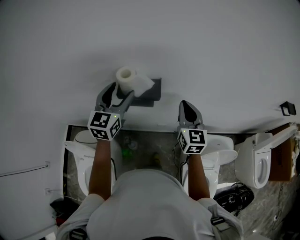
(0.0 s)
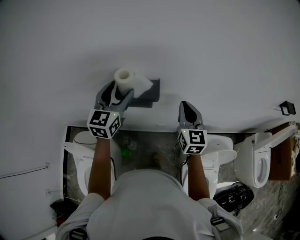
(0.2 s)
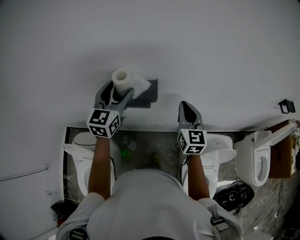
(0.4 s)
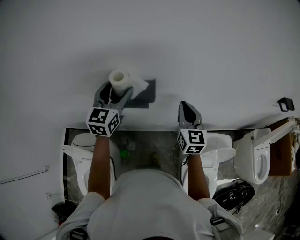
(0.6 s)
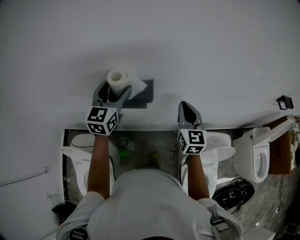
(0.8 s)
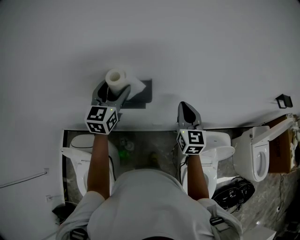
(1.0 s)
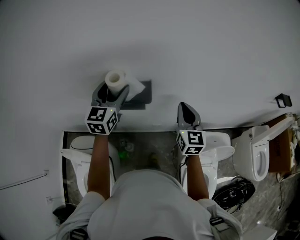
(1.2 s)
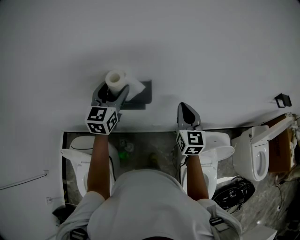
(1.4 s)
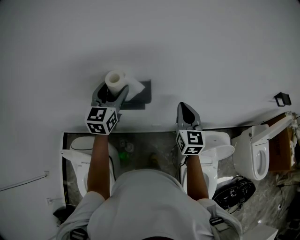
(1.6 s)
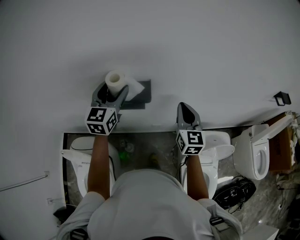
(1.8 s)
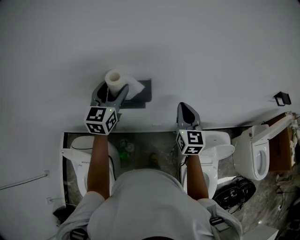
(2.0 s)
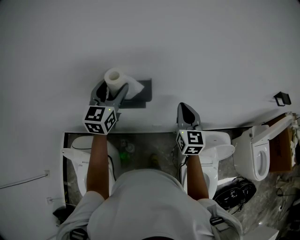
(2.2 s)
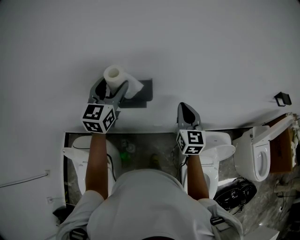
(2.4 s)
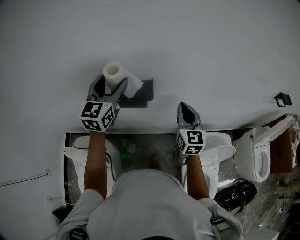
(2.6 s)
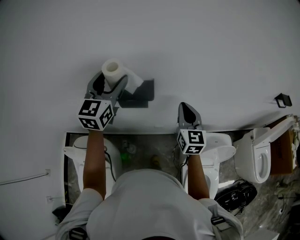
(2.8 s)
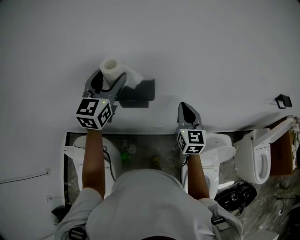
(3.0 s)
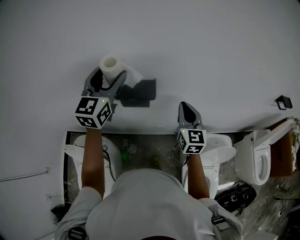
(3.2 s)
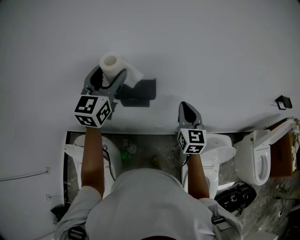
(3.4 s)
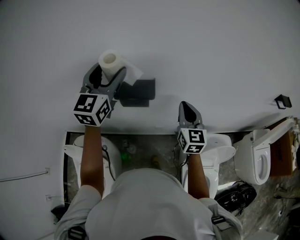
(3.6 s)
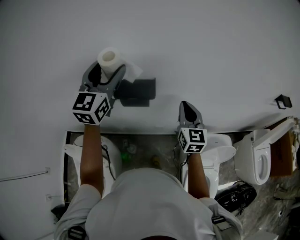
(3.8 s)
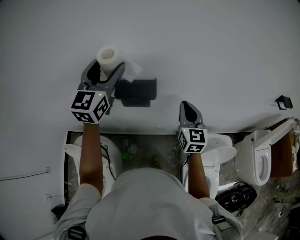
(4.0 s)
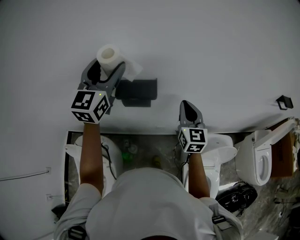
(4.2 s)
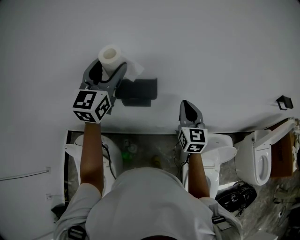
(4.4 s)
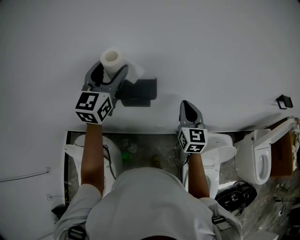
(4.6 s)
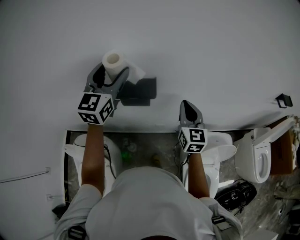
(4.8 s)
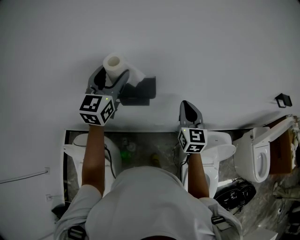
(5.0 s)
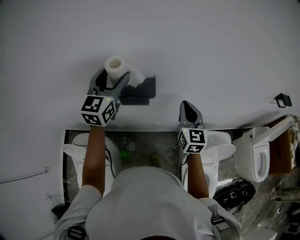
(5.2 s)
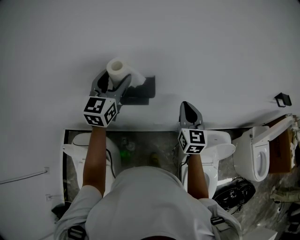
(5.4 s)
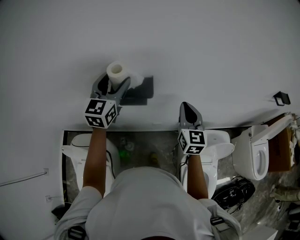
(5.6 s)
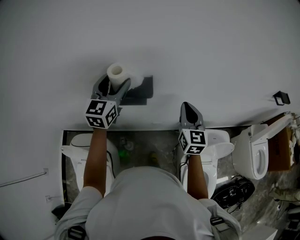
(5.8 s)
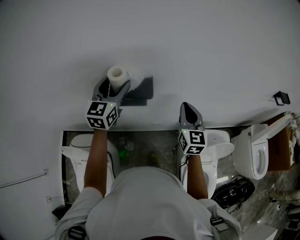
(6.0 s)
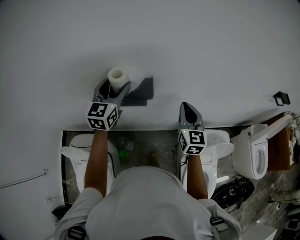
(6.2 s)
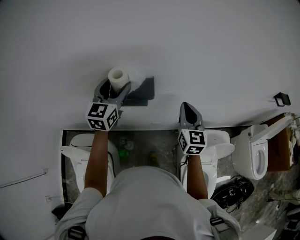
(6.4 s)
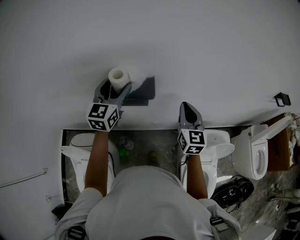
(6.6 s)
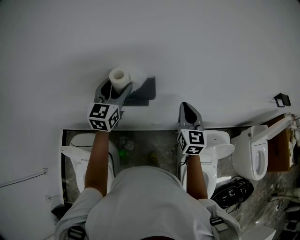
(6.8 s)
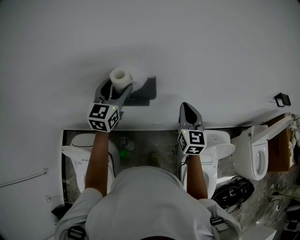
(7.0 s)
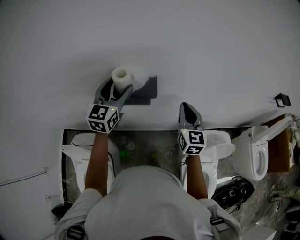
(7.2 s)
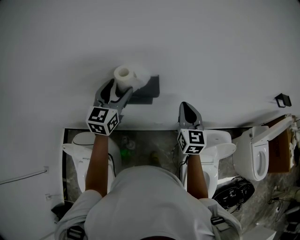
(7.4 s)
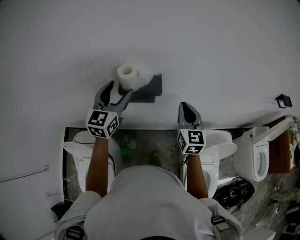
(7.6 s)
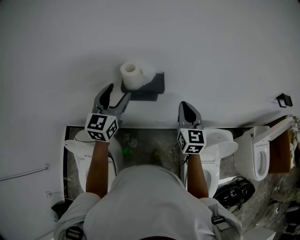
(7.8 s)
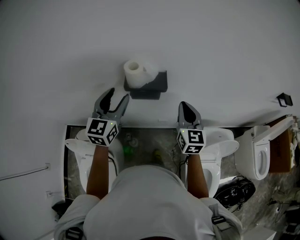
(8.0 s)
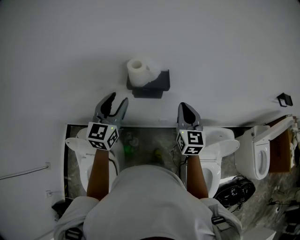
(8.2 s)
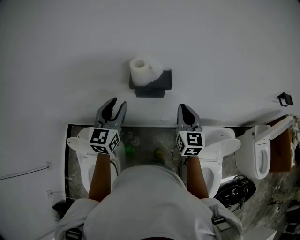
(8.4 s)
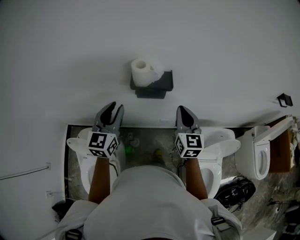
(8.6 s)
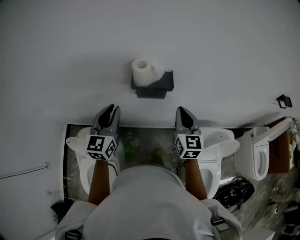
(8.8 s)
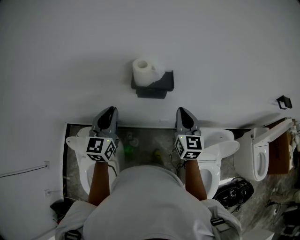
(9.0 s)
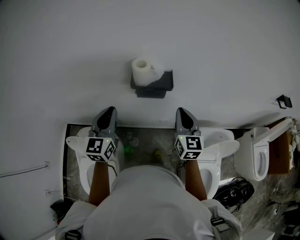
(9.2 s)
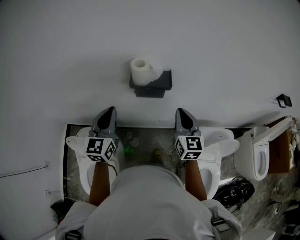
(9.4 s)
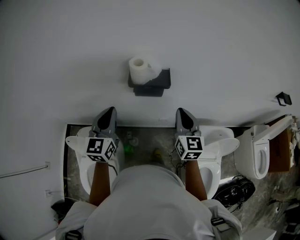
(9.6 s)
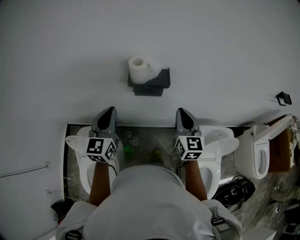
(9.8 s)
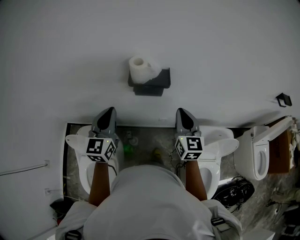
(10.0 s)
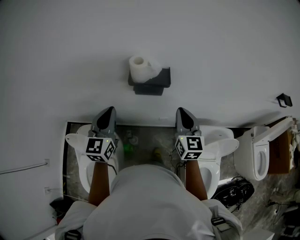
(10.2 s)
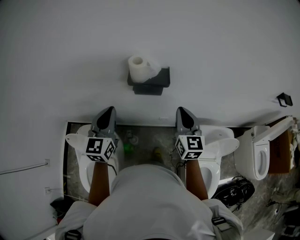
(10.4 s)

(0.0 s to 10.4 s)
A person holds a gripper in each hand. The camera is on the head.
0.0 s - 1.4 s: The grippers move only a little.
1.4 s - 3.0 s: The left gripper shifts approximately 10 cm upward.
3.0 s - 4.4 s: There are only small adjustments of the grippers.
4.4 s - 6.0 s: The left gripper heads downward, covering some 10 cm.
6.0 s - 7.4 s: The grippers make only small movements.
7.4 s - 9.0 s: The left gripper heads backward and to the left, covering approximately 15 cm, and closes its fingers; the right gripper heads to the left and backward, covering some 10 cm.
9.0 s - 10.4 s: There are only small adjustments of the grippers.

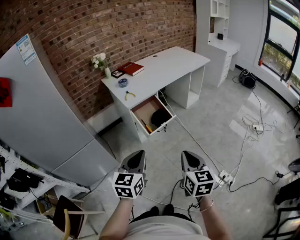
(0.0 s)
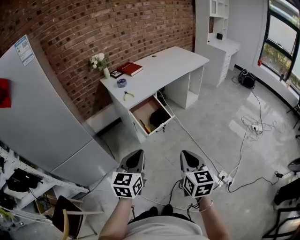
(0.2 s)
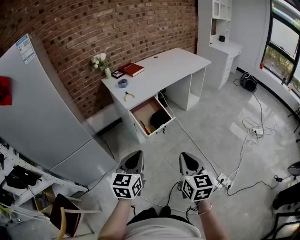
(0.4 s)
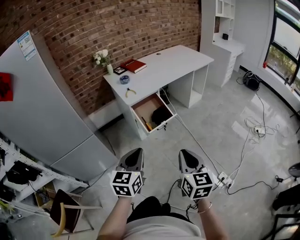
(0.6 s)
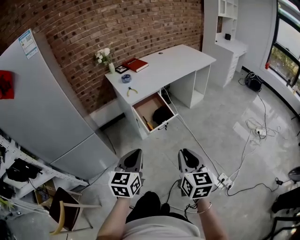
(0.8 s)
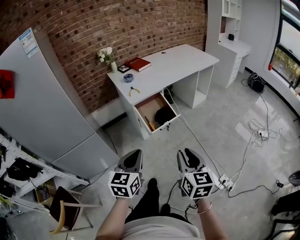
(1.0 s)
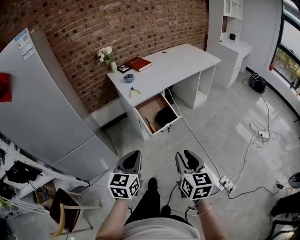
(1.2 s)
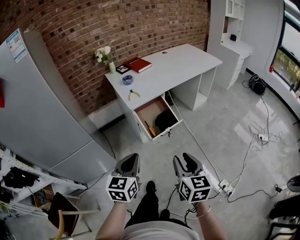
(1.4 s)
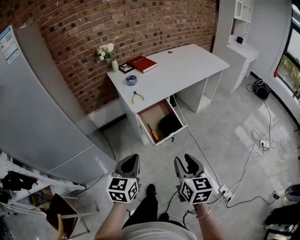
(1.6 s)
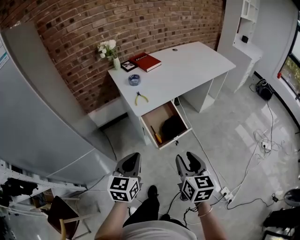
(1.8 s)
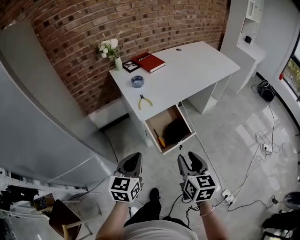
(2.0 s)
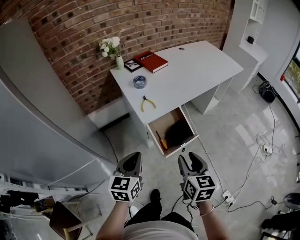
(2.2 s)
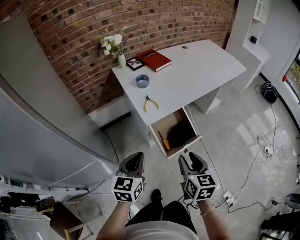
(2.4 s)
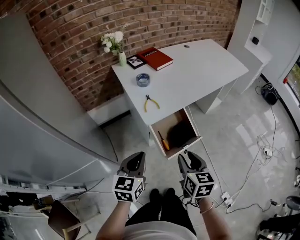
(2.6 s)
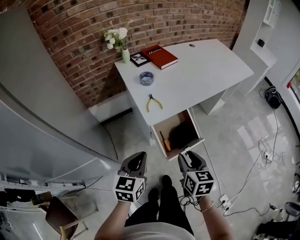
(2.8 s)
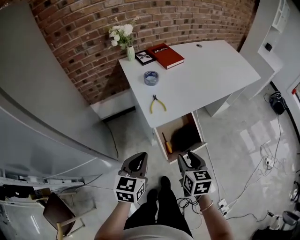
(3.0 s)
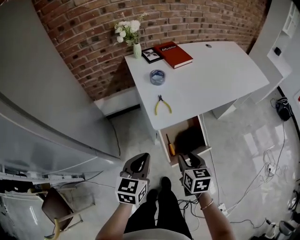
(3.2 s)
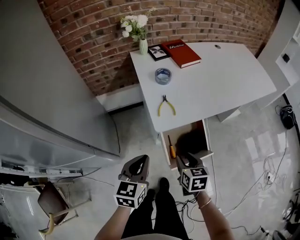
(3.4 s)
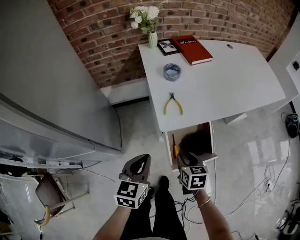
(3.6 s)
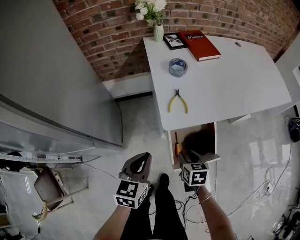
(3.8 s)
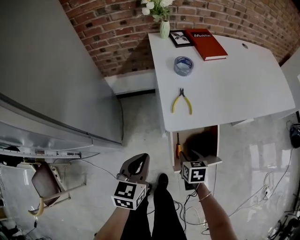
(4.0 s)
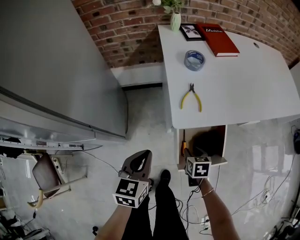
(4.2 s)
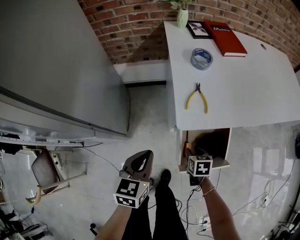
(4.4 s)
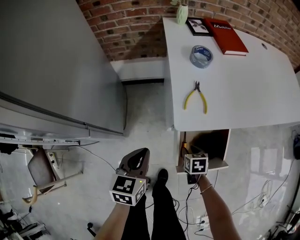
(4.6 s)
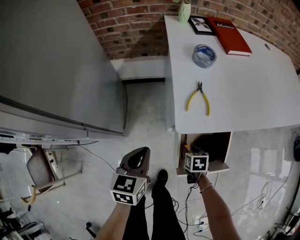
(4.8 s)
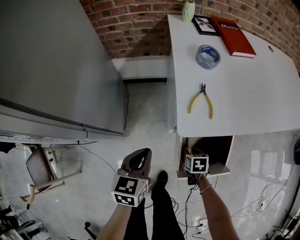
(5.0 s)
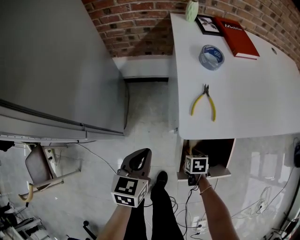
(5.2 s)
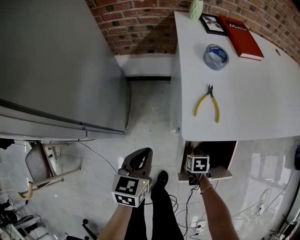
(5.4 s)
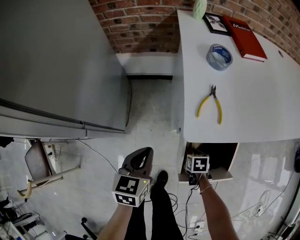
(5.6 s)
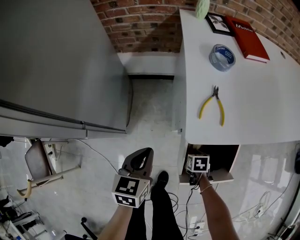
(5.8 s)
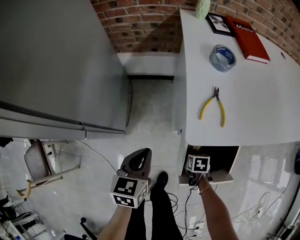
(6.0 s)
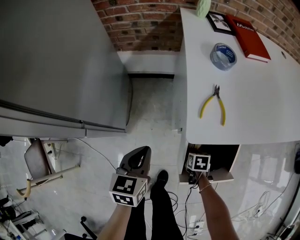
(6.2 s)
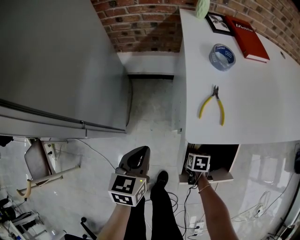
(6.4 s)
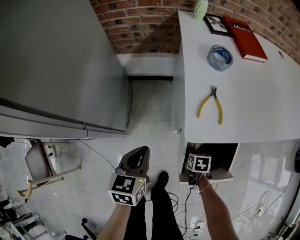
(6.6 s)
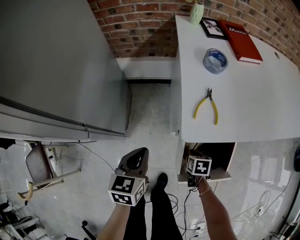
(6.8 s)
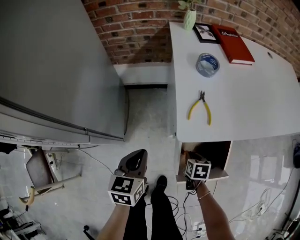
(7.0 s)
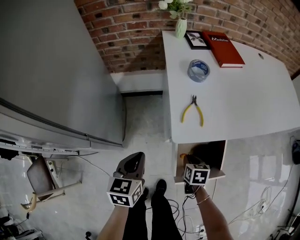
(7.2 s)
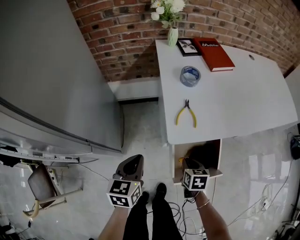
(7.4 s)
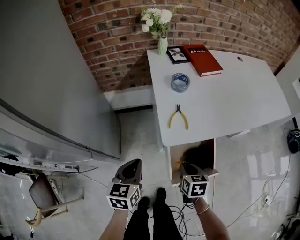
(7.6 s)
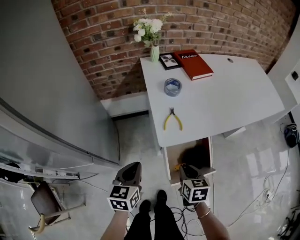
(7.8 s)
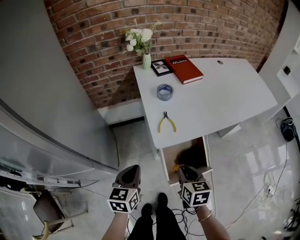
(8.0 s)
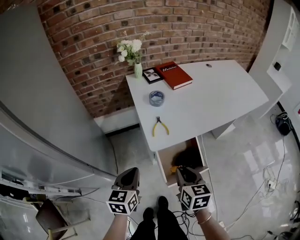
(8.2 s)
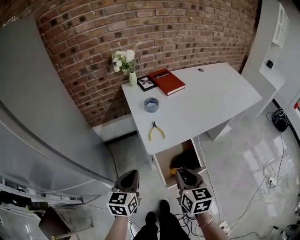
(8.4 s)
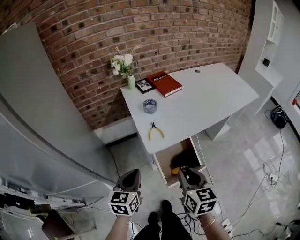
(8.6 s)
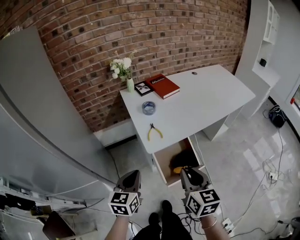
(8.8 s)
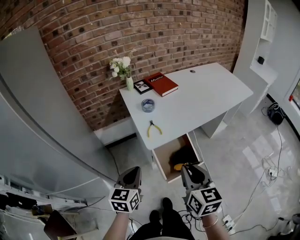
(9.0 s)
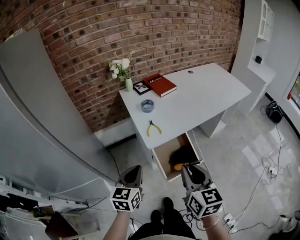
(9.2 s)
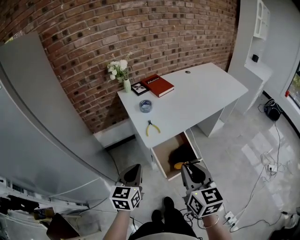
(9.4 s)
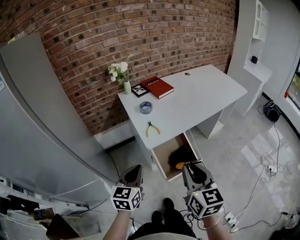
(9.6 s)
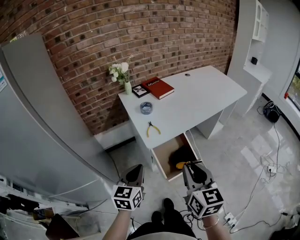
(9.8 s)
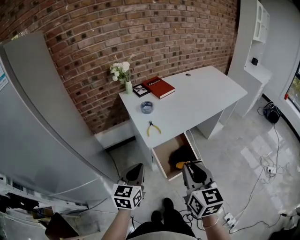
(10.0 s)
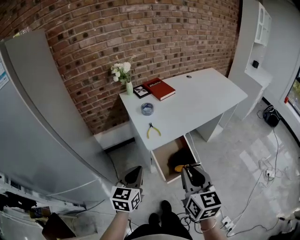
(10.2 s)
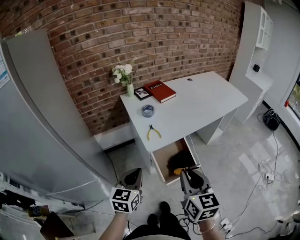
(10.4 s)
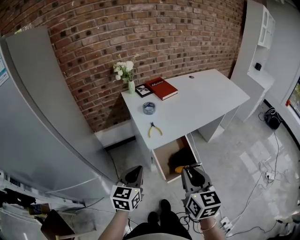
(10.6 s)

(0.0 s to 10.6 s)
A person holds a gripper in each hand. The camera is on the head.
0.0 s - 1.6 s: The right gripper is displaced forward by some 15 cm, and opens. Meanwhile the left gripper moves forward and to the left, some 15 cm.
1.6 s - 3.0 s: The right gripper travels forward and downward by about 25 cm; the left gripper moves forward, some 20 cm.
3.0 s - 4.6 s: The right gripper shifts some 30 cm downward and forward, and changes its angle by roughly 30 degrees. The left gripper heads downward and forward, covering roughly 15 cm, and turns by some 20 degrees.
4.6 s - 6.0 s: The right gripper moves downward, roughly 10 cm, while the left gripper shifts about 5 cm downward.
6.0 s - 7.6 s: The left gripper travels upward by roughly 10 cm; the right gripper moves upward, roughly 20 cm, and turns by some 20 degrees.
7.6 s - 9.0 s: The right gripper shifts approximately 30 cm upward and backward, and points its fingers some 30 degrees further upward, while the left gripper travels upward and backward by some 15 cm, and rotates roughly 20 degrees.
9.0 s - 10.6 s: There are only small adjustments of the grippers.

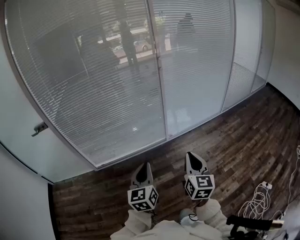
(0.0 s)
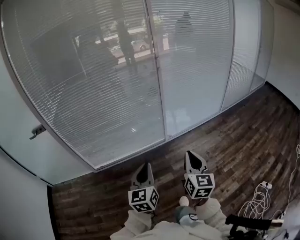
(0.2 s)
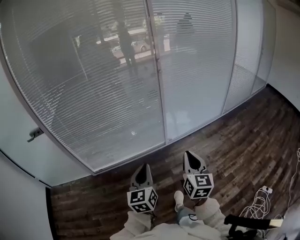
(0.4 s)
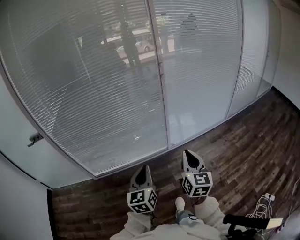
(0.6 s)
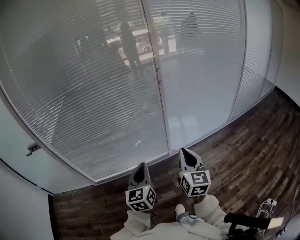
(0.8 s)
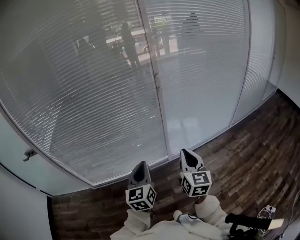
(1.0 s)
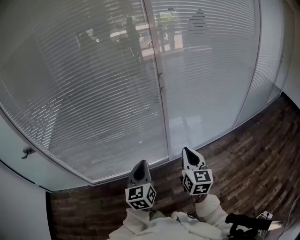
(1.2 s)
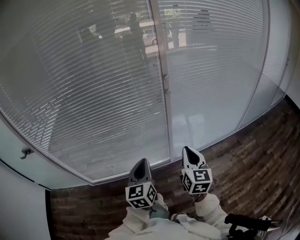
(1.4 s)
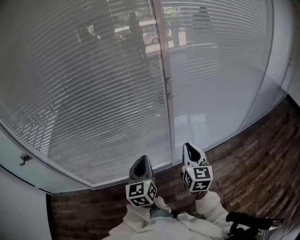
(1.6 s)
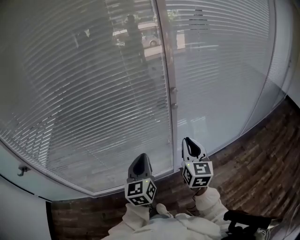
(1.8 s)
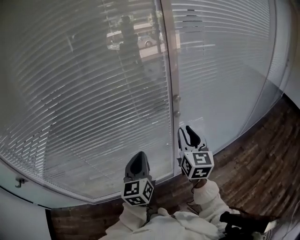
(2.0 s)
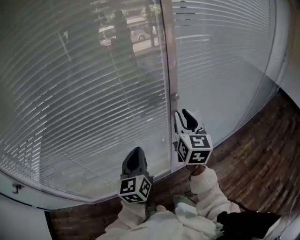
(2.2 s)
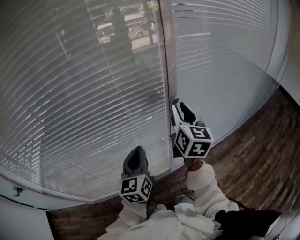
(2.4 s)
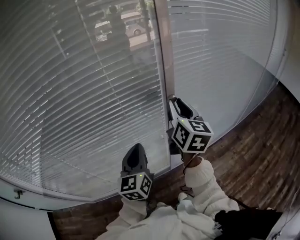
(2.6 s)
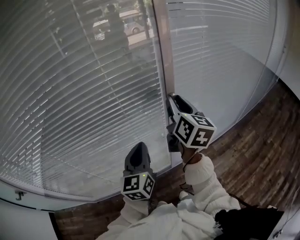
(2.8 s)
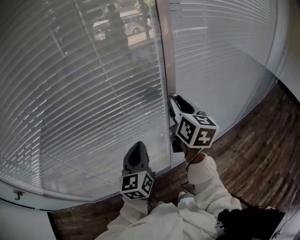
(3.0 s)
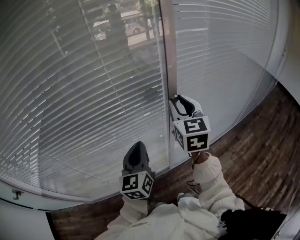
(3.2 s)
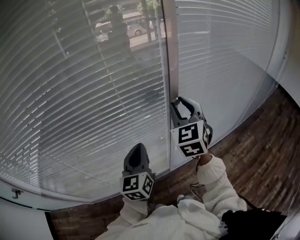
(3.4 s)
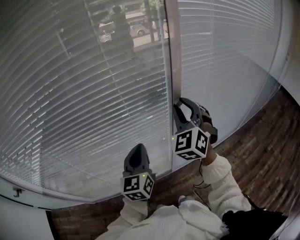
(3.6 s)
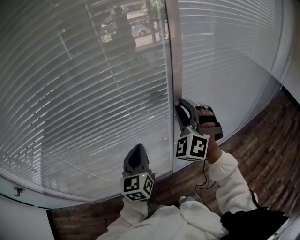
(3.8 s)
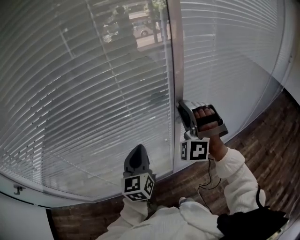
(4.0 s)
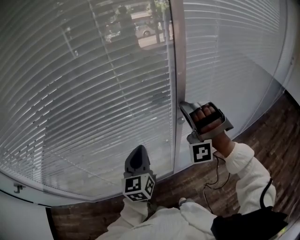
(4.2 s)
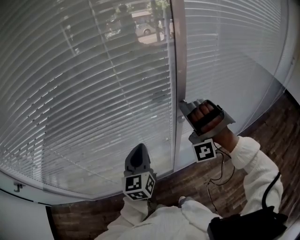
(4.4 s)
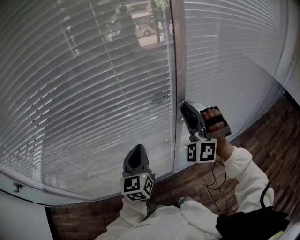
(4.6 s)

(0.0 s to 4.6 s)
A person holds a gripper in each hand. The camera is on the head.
0.0 s - 1.6 s: Both grippers are carried forward, approximately 50 cm.
1.6 s - 3.0 s: The left gripper goes some 20 cm forward. Meanwhile the right gripper heads forward and upward, covering some 30 cm, and opens its fingers.
3.0 s - 4.6 s: The right gripper rolls counterclockwise, seen from behind, by roughly 100 degrees.
